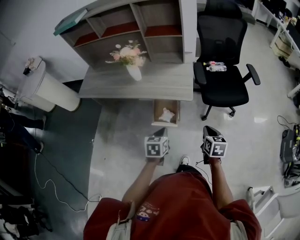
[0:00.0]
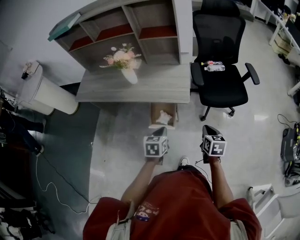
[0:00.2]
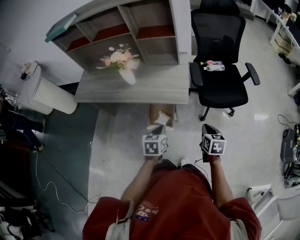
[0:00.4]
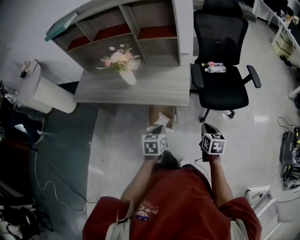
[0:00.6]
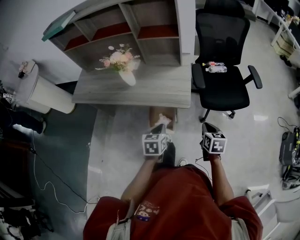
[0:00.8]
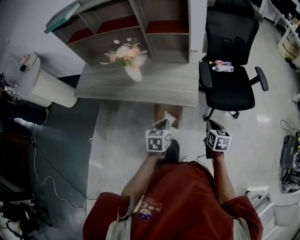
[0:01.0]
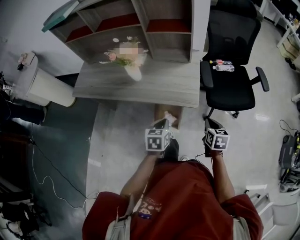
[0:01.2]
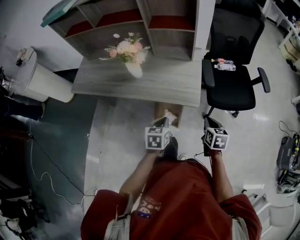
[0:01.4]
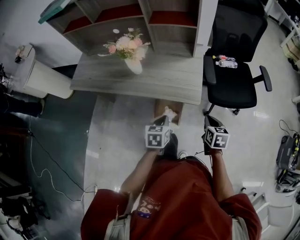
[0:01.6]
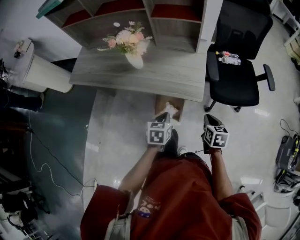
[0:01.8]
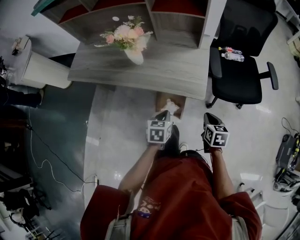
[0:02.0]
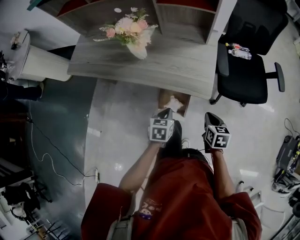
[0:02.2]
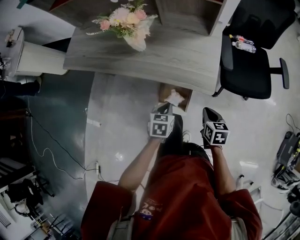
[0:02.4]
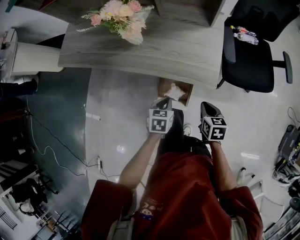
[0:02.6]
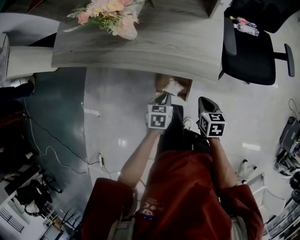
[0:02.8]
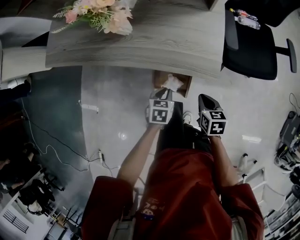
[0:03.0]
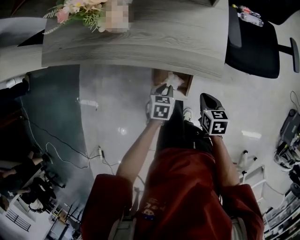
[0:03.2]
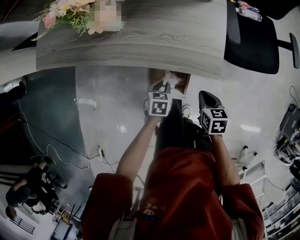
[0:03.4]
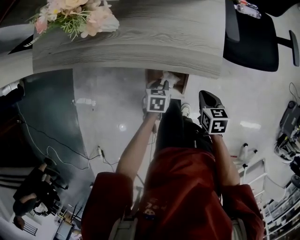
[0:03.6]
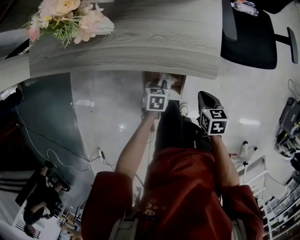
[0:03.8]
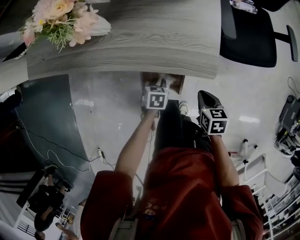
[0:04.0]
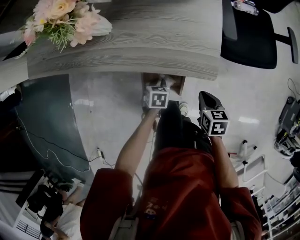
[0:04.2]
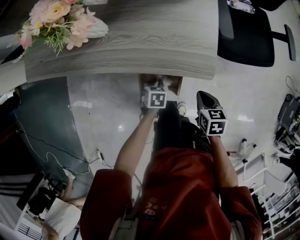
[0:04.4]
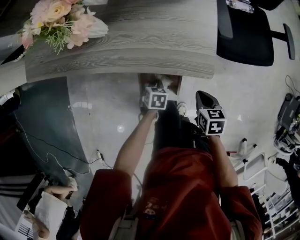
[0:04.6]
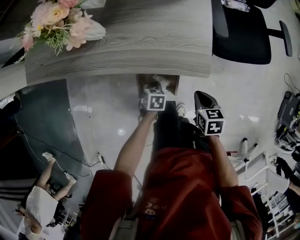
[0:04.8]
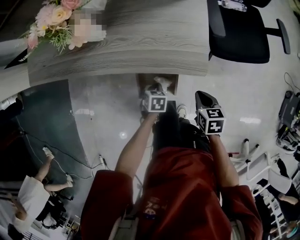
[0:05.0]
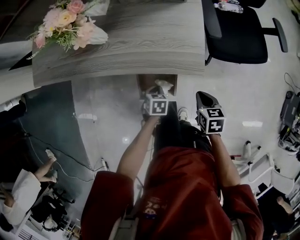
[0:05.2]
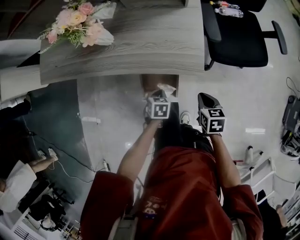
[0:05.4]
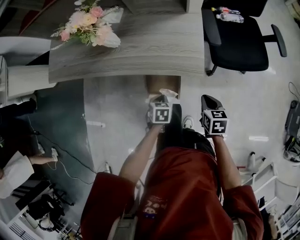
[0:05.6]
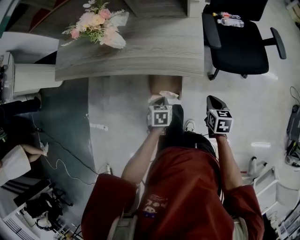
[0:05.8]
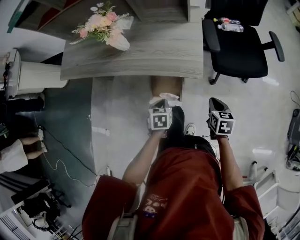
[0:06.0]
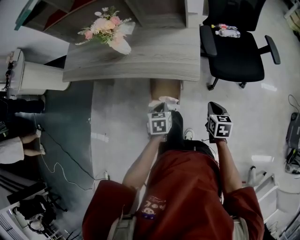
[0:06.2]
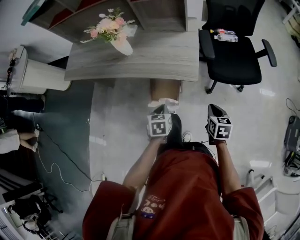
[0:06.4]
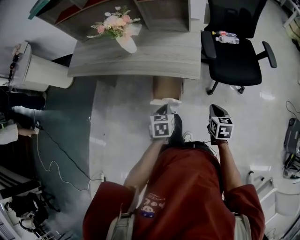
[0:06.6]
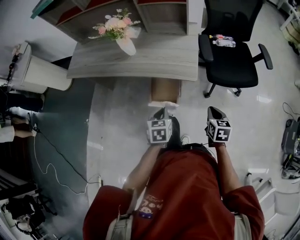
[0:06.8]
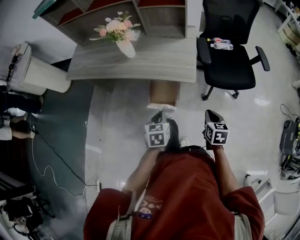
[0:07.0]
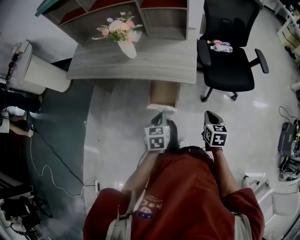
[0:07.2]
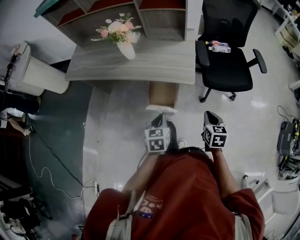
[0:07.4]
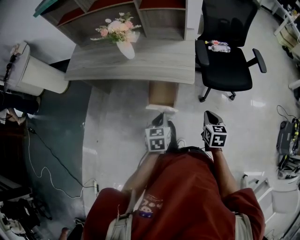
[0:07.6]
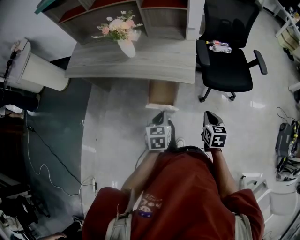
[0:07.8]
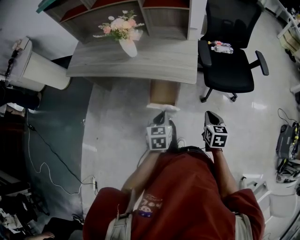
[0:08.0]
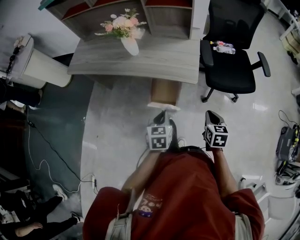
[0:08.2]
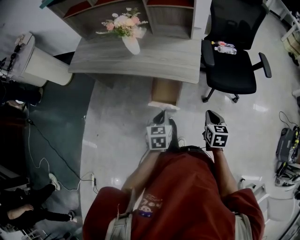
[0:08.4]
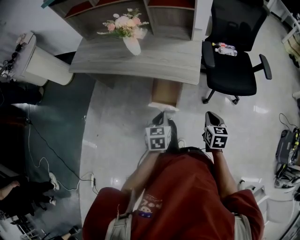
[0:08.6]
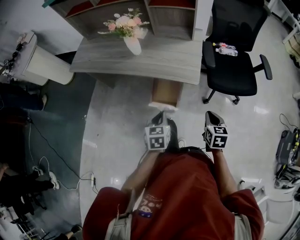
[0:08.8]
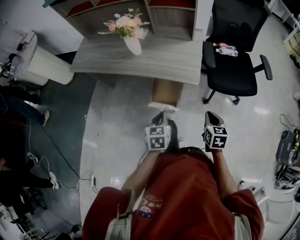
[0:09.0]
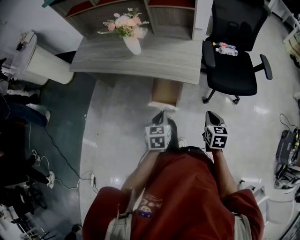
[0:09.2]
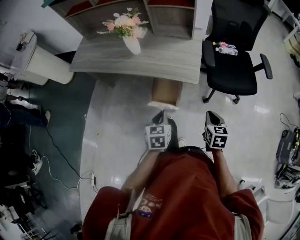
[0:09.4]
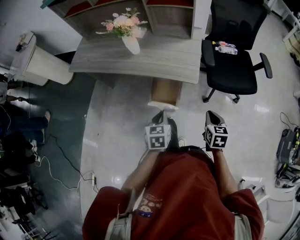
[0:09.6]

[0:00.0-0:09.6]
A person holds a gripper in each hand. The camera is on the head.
0:00.0 to 0:01.6: The grippers both shift forward by approximately 15 cm.
0:01.6 to 0:03.2: The left gripper travels downward by approximately 25 cm; the right gripper is displaced downward and to the left by about 20 cm.
0:03.2 to 0:04.8: The left gripper goes roughly 10 cm downward.
0:04.8 to 0:06.4: The right gripper moves upward, to the right and backward, roughly 20 cm; the left gripper travels upward and backward by some 25 cm, and rotates some 20 degrees.
0:06.4 to 0:08.0: The right gripper changes place by roughly 5 cm. Meanwhile the left gripper shifts some 10 cm upward and backward.
0:08.0 to 0:09.6: There are only small adjustments of the grippers.

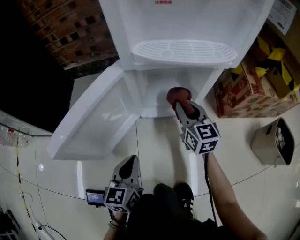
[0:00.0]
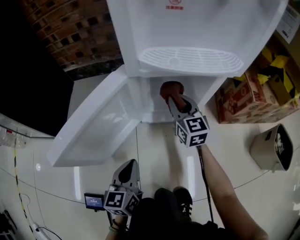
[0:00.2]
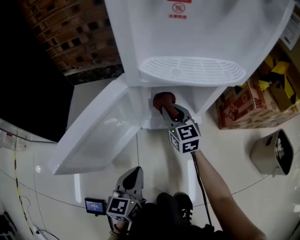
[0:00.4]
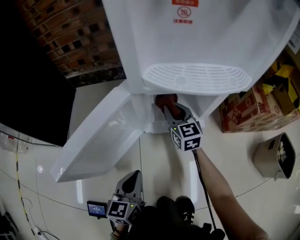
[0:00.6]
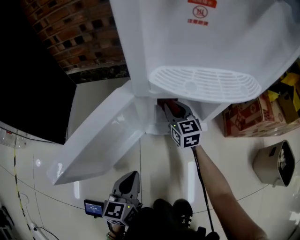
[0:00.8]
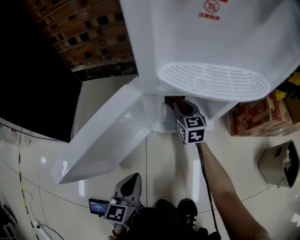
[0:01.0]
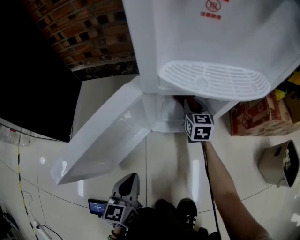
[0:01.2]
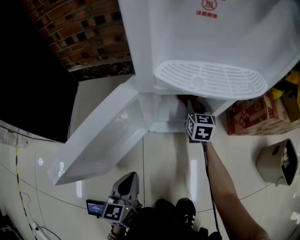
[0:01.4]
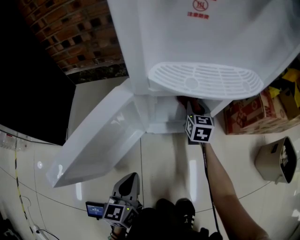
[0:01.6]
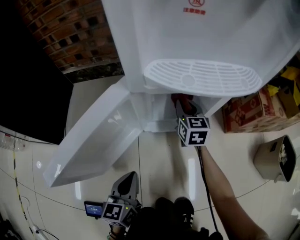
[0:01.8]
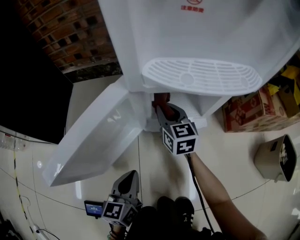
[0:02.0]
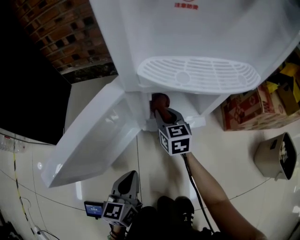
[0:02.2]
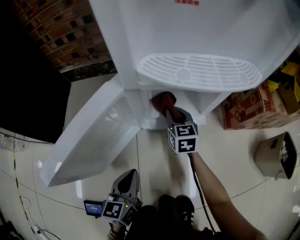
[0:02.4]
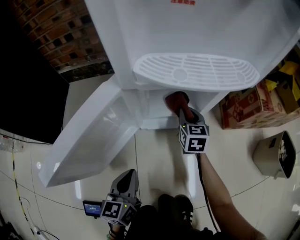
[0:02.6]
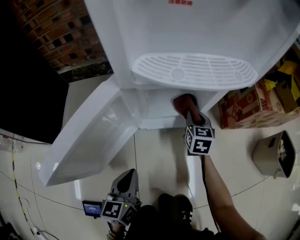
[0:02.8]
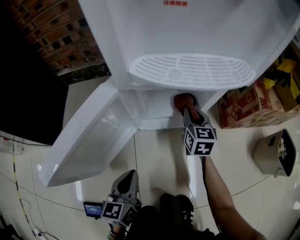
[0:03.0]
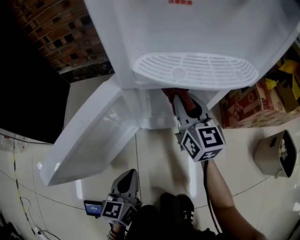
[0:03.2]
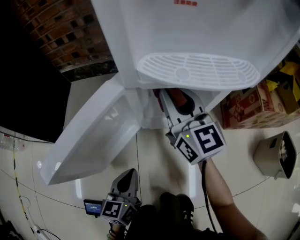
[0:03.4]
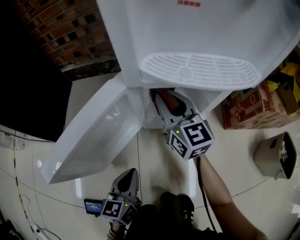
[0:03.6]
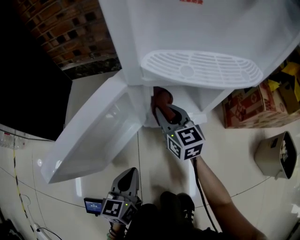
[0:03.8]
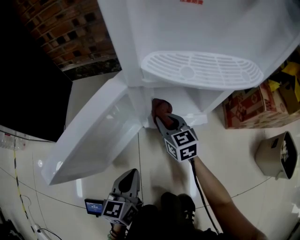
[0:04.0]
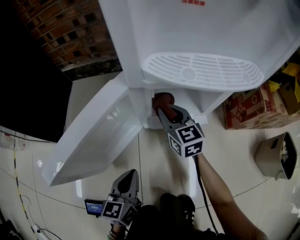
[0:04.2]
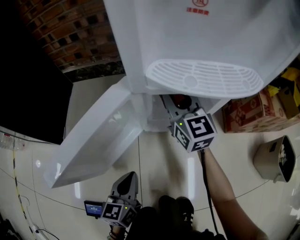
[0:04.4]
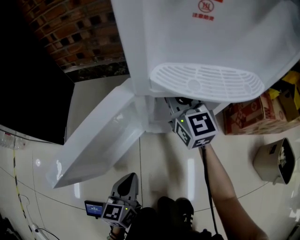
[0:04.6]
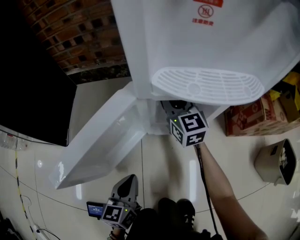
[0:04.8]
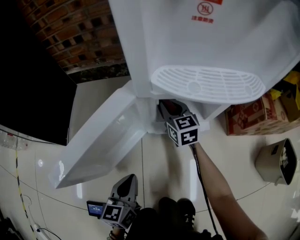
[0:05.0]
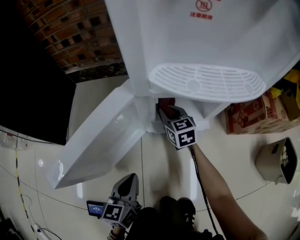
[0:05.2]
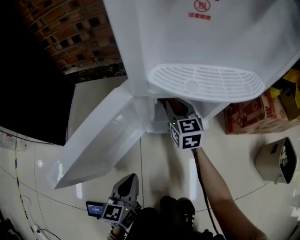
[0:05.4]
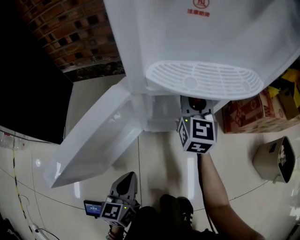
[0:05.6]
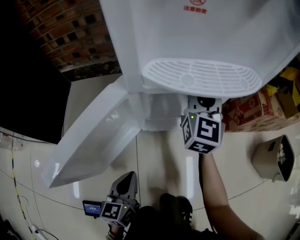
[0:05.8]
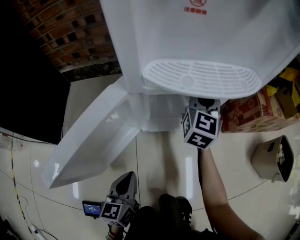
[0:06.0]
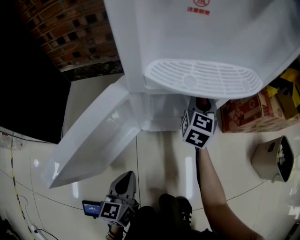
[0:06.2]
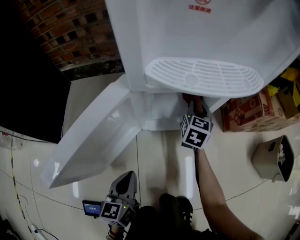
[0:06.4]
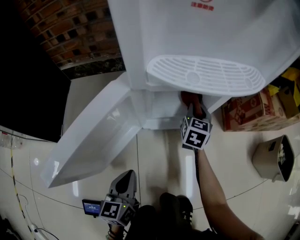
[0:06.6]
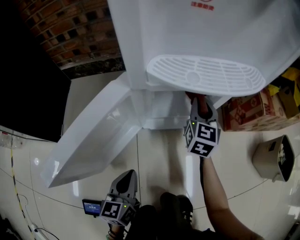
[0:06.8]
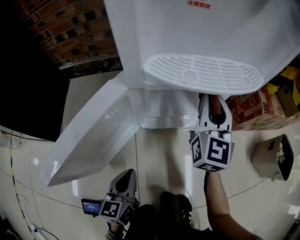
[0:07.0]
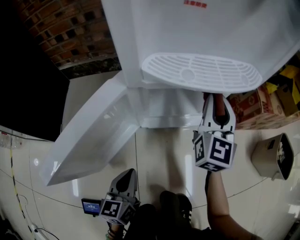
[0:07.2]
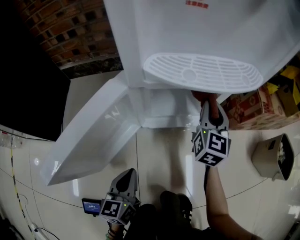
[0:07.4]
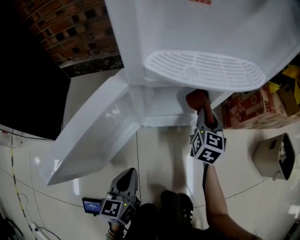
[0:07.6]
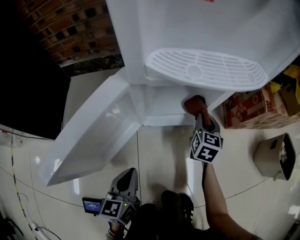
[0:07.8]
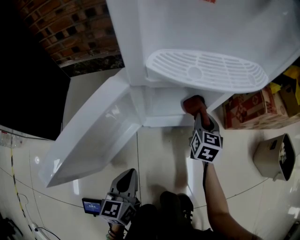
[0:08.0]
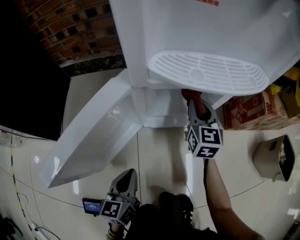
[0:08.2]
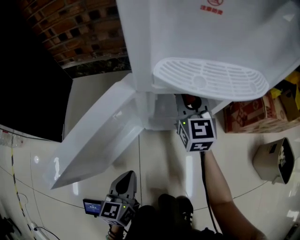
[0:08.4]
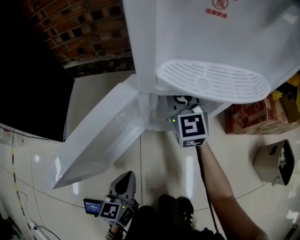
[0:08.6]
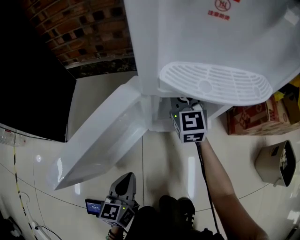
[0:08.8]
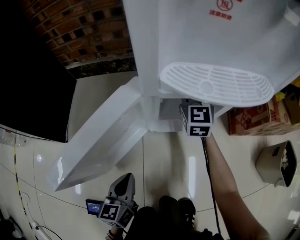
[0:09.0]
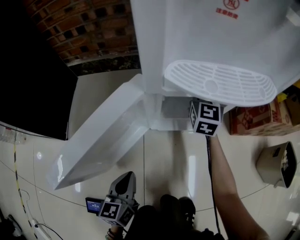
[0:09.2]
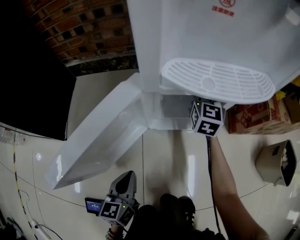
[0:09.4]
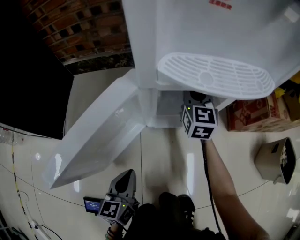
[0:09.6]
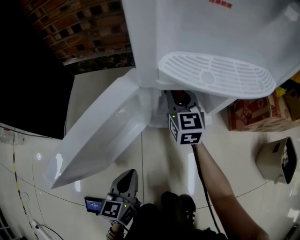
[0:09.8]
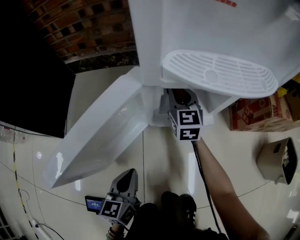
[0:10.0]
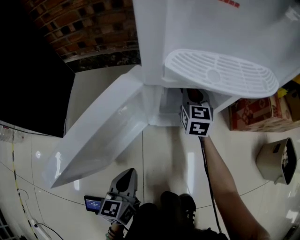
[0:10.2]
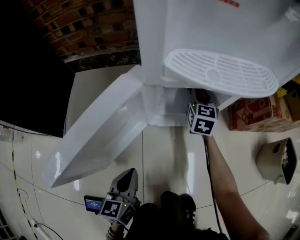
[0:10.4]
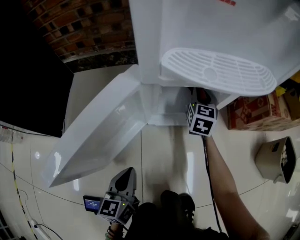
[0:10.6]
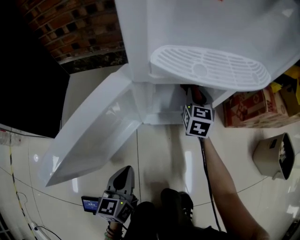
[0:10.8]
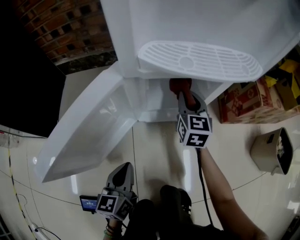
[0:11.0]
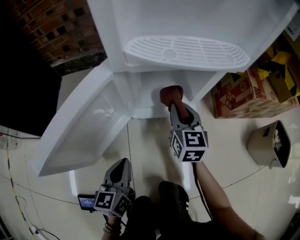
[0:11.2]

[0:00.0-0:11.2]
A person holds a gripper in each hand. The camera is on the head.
0:00.0 to 0:01.6: The right gripper goes approximately 15 cm forward and downward, and swivels about 20 degrees.
0:01.6 to 0:03.2: The right gripper moves up and down over about 15 cm, changing direction 2 times, and changes its angle by approximately 30 degrees.
0:03.2 to 0:04.8: The right gripper moves up and down over approximately 20 cm, changing direction 3 times.
0:04.8 to 0:06.4: The right gripper swings up and down, approximately 20 cm each way, with 2 reversals, and rotates roughly 40 degrees.
0:06.4 to 0:08.0: The right gripper travels backward by some 5 cm, and goes upward and returns, approximately 15 cm each way.
0:08.0 to 0:09.6: The right gripper moves left and right over approximately 20 cm, changing direction 2 times, and swivels about 20 degrees.
0:09.6 to 0:11.2: The right gripper moves backward, some 10 cm.

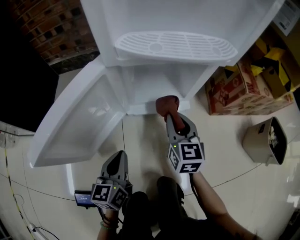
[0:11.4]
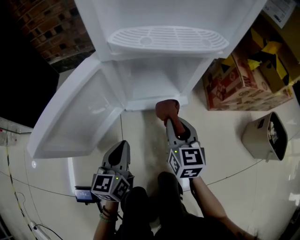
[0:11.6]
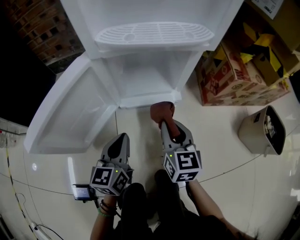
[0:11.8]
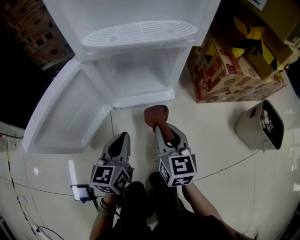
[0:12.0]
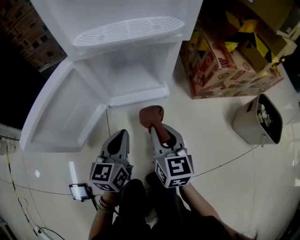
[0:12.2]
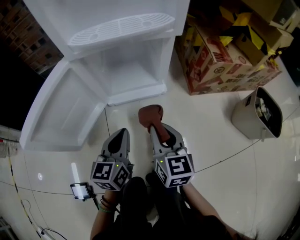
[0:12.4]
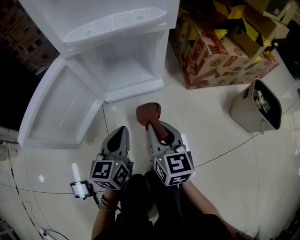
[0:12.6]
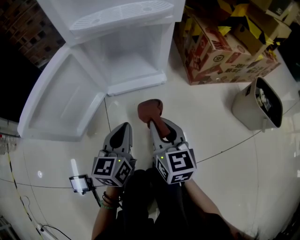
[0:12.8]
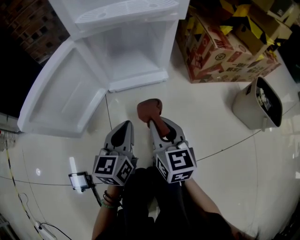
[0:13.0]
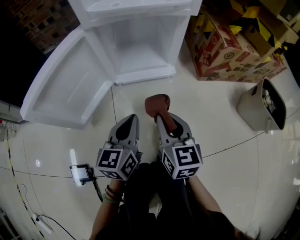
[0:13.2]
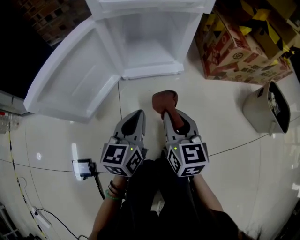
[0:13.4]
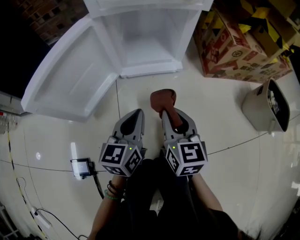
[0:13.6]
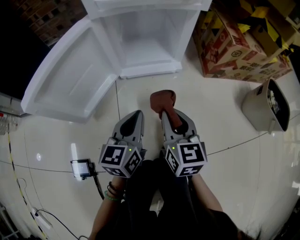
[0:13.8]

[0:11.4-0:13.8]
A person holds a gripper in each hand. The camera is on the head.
0:11.4 to 0:12.6: The left gripper goes about 10 cm to the right. Meanwhile the right gripper heads backward, covering roughly 15 cm.
0:12.6 to 0:13.8: There are only small adjustments of the grippers.
